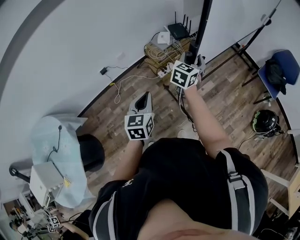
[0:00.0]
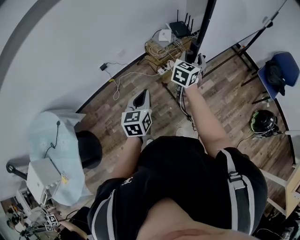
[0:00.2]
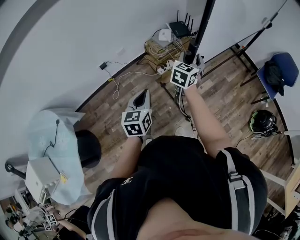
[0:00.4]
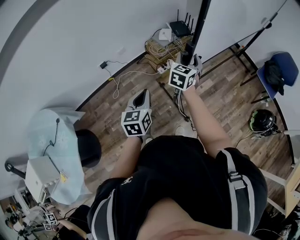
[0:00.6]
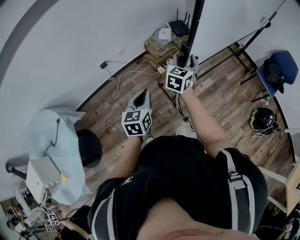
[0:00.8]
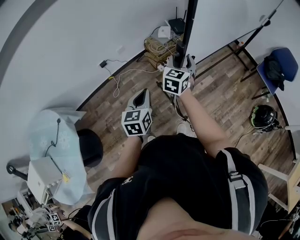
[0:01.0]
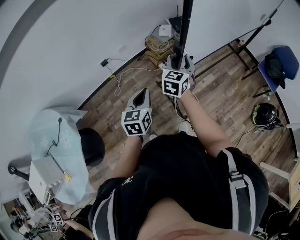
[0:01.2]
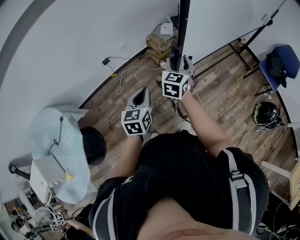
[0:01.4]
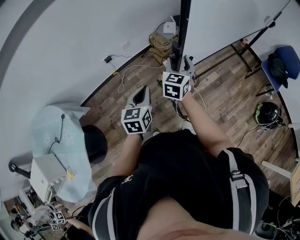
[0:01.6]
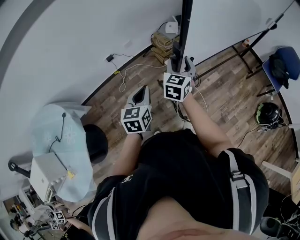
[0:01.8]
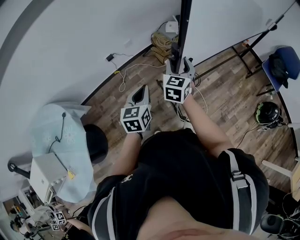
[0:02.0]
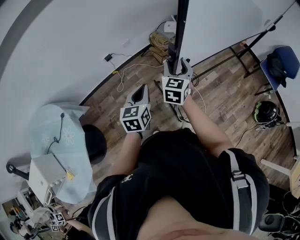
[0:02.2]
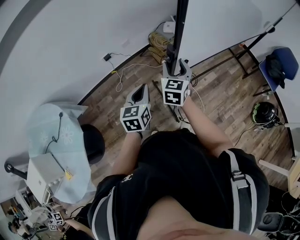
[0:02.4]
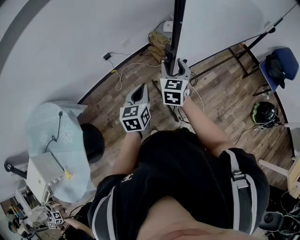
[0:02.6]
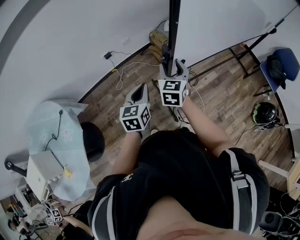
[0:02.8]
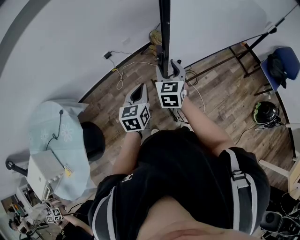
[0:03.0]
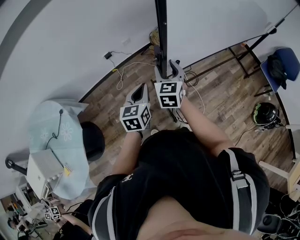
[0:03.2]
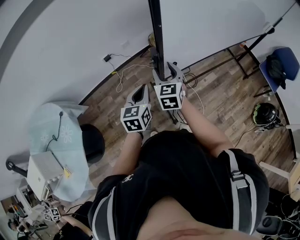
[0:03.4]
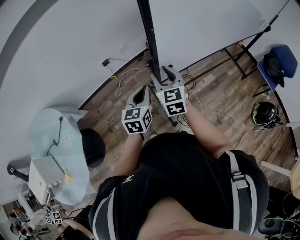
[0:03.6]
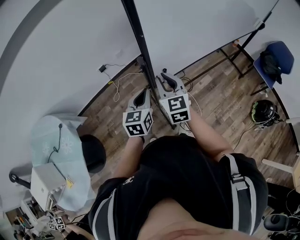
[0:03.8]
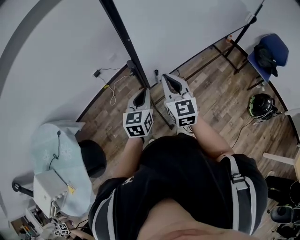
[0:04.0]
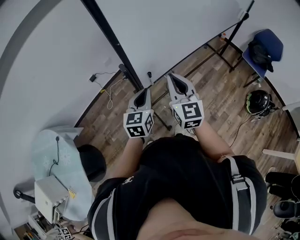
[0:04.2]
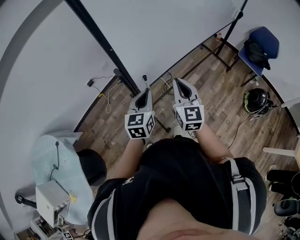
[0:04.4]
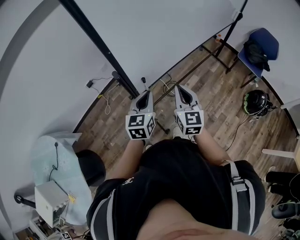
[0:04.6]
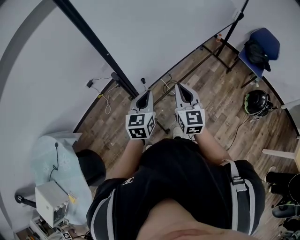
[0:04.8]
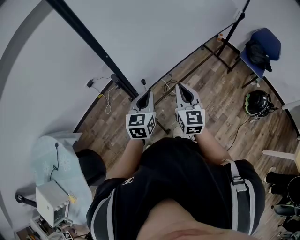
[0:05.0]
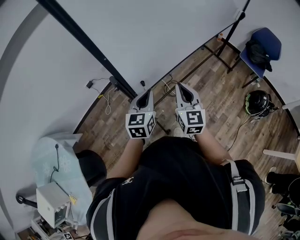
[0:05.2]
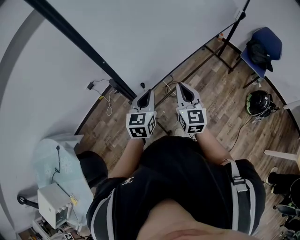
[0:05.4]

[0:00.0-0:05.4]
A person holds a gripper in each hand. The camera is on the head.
0:00.0 to 0:01.4: The left gripper heads backward and to the left, covering roughly 10 cm. Meanwhile the right gripper shifts some 15 cm backward and to the left.
0:01.4 to 0:02.8: The right gripper shifts roughly 10 cm to the left and backward.
0:02.8 to 0:04.0: The right gripper goes about 10 cm to the right, backward and upward, and closes; the left gripper heads to the right, covering about 10 cm.
0:04.0 to 0:05.4: The right gripper moves to the right, roughly 10 cm. Meanwhile the left gripper travels to the right by roughly 10 cm.

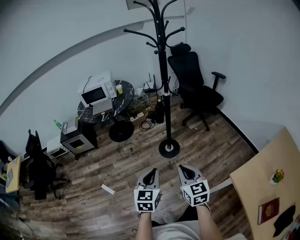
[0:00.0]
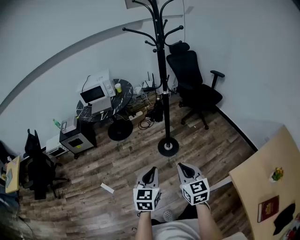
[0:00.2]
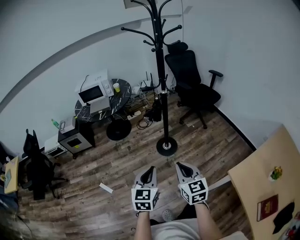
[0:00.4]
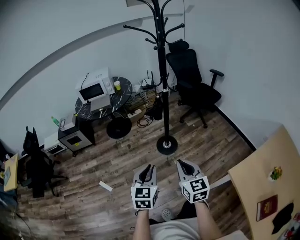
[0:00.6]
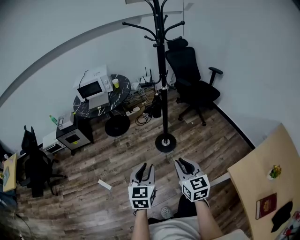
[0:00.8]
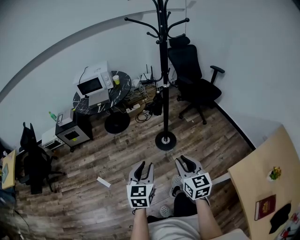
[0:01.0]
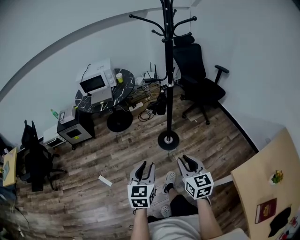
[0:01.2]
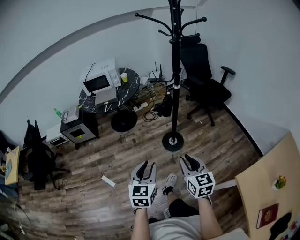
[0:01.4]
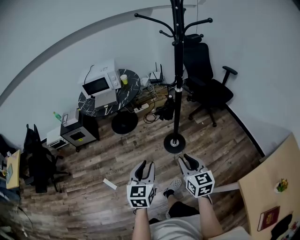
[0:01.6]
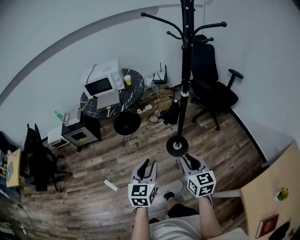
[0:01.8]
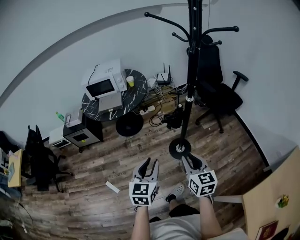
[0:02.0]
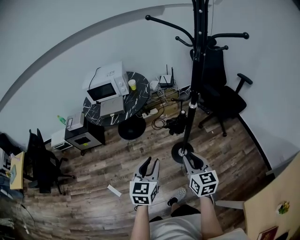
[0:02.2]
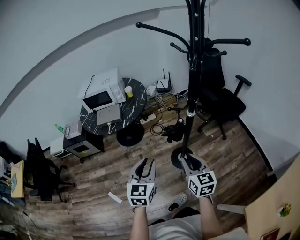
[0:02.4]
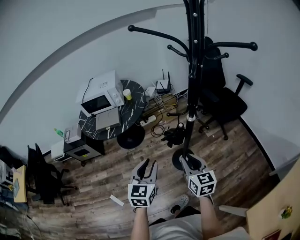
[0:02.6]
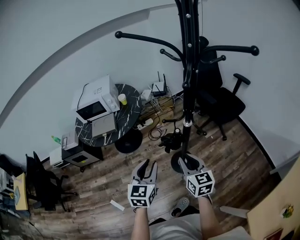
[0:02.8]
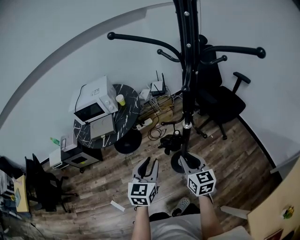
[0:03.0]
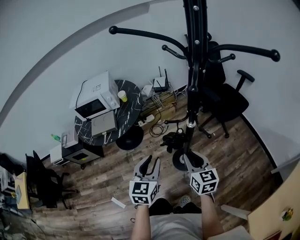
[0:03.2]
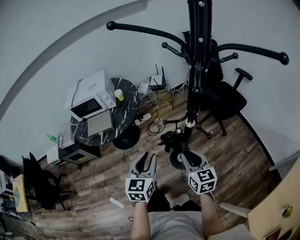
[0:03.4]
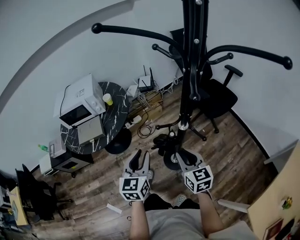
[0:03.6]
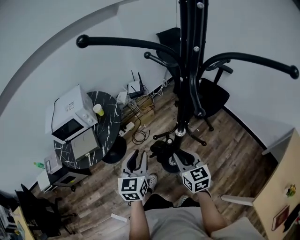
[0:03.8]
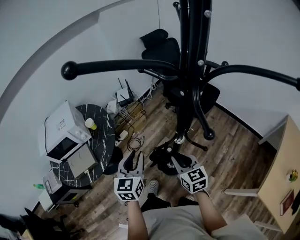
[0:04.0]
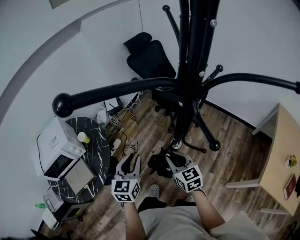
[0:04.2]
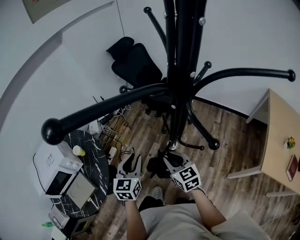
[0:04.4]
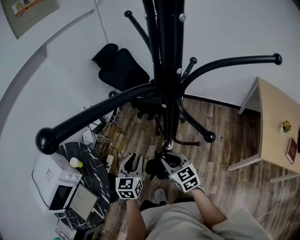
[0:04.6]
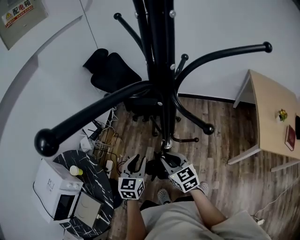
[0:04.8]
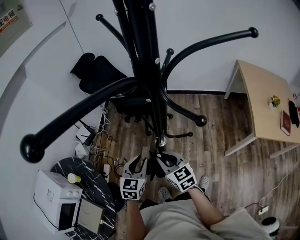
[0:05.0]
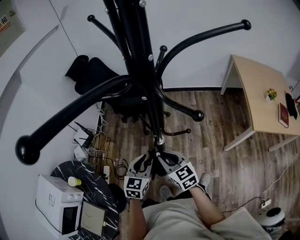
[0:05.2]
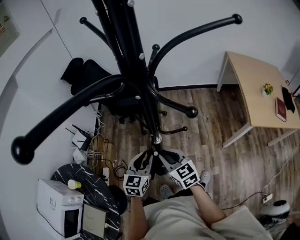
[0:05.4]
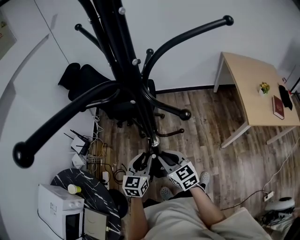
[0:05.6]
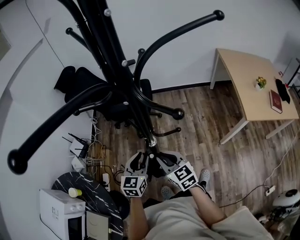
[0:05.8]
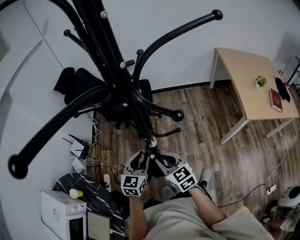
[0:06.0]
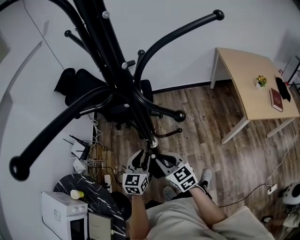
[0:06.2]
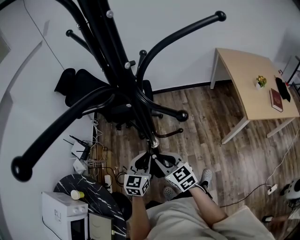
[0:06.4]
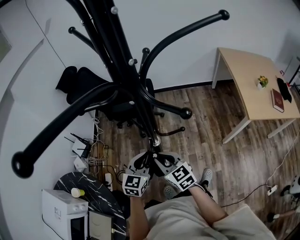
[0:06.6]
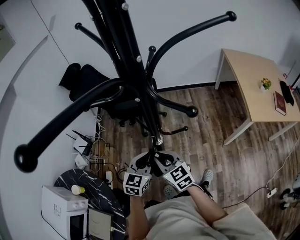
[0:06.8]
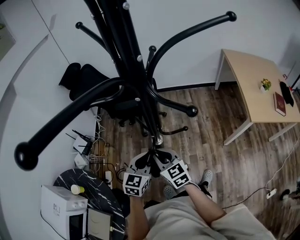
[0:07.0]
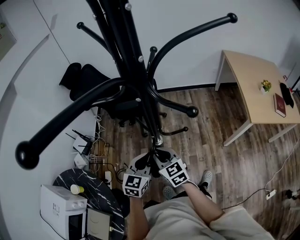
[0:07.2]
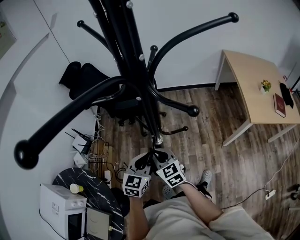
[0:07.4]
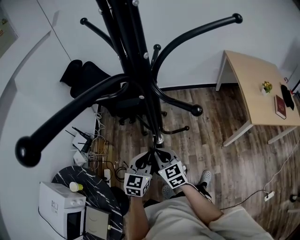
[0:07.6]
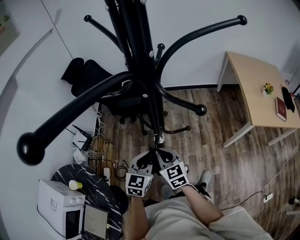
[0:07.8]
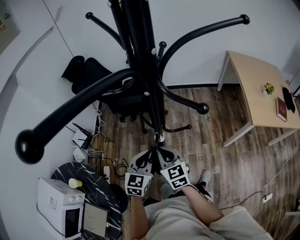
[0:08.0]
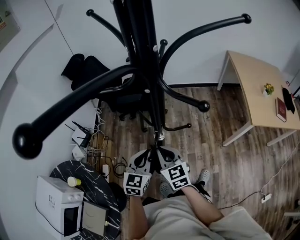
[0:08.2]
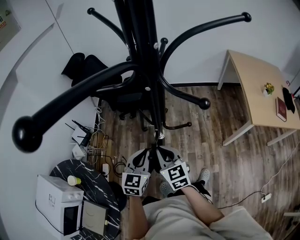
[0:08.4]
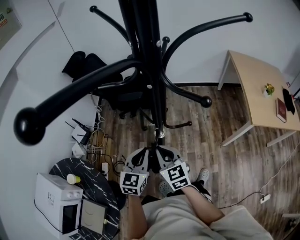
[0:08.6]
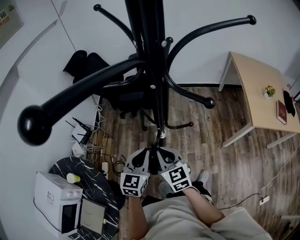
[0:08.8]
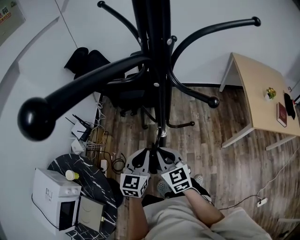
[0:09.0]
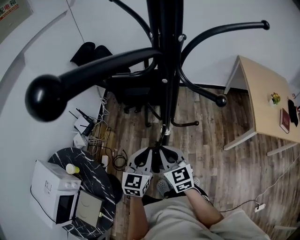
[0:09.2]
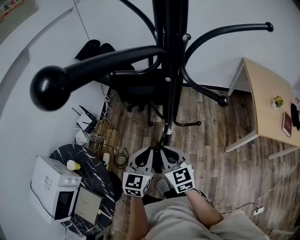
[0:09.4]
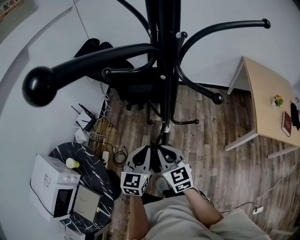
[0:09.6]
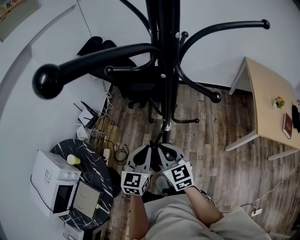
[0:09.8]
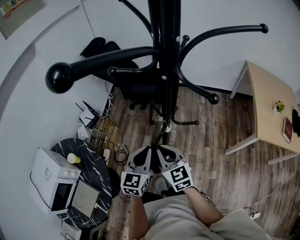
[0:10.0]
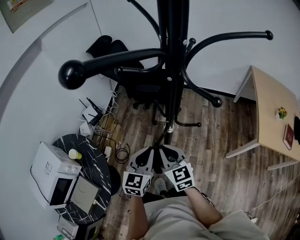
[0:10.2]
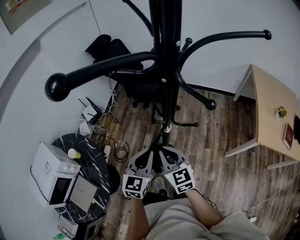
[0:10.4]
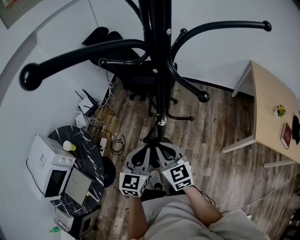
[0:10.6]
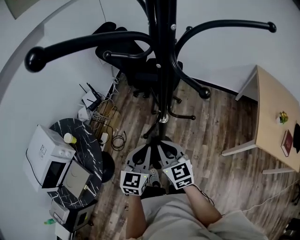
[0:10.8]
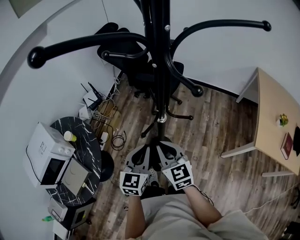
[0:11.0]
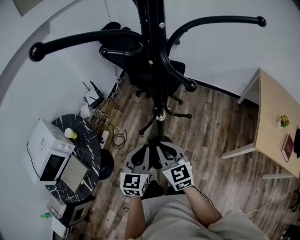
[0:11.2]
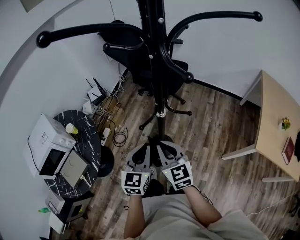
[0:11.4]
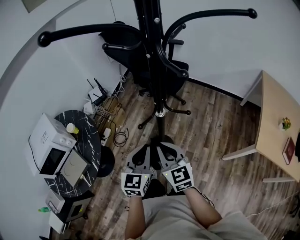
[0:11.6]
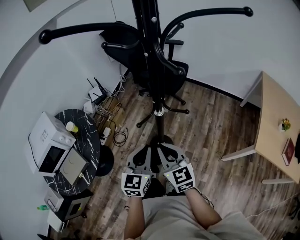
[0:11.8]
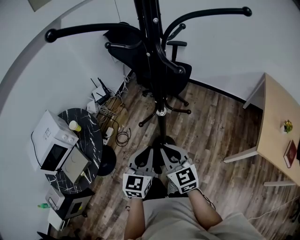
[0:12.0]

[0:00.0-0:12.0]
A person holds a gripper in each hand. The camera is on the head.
0:00.0 to 0:01.6: The left gripper moves forward and to the left, approximately 15 cm, and opens; the right gripper moves forward, roughly 10 cm, and opens its fingers.
0:01.6 to 0:03.0: Both grippers move forward, about 30 cm.
0:03.0 to 0:04.4: The right gripper moves some 20 cm, and changes its angle by roughly 20 degrees. The left gripper ends up roughly 25 cm from where it was, and rotates roughly 30 degrees.
0:04.4 to 0:06.0: The right gripper changes its angle by about 20 degrees. The left gripper ends up about 10 cm from where it was, and turns by roughly 40 degrees.
0:06.0 to 0:07.6: The left gripper closes up.
0:07.6 to 0:09.0: The right gripper changes place by approximately 5 cm.
0:09.0 to 0:10.4: The left gripper moves roughly 5 cm.
0:10.4 to 0:12.0: The left gripper goes about 10 cm backward, while the right gripper travels backward and to the right by roughly 10 cm.

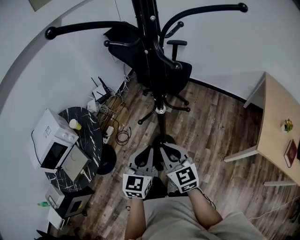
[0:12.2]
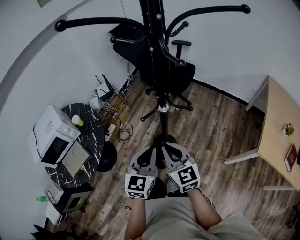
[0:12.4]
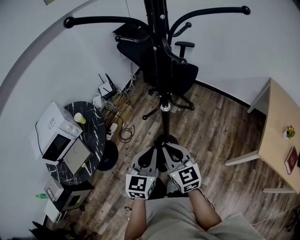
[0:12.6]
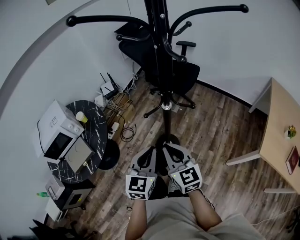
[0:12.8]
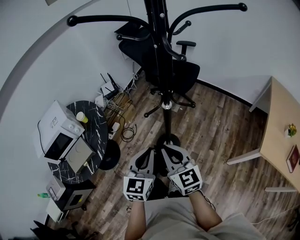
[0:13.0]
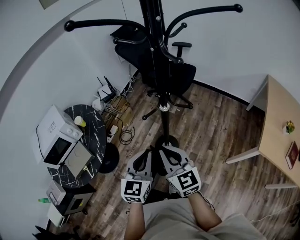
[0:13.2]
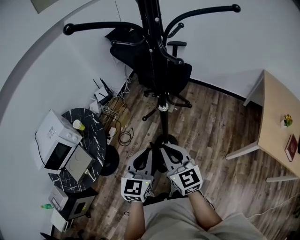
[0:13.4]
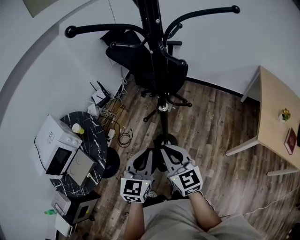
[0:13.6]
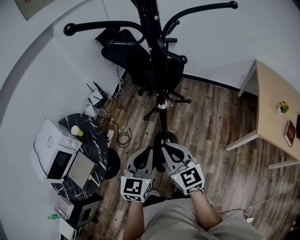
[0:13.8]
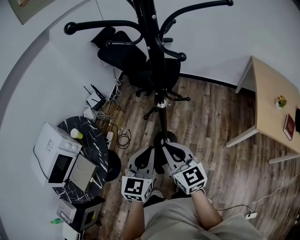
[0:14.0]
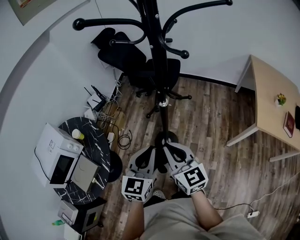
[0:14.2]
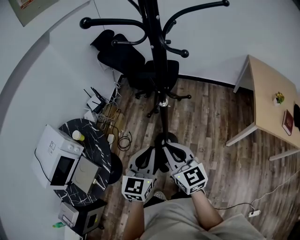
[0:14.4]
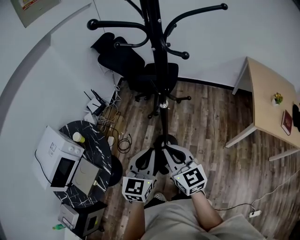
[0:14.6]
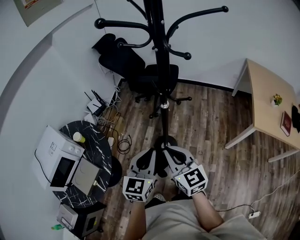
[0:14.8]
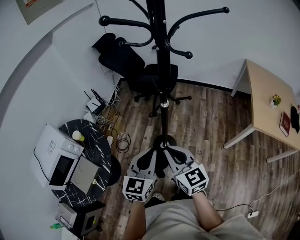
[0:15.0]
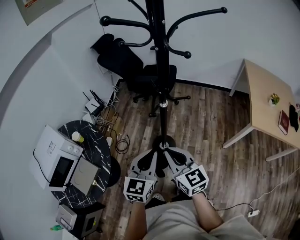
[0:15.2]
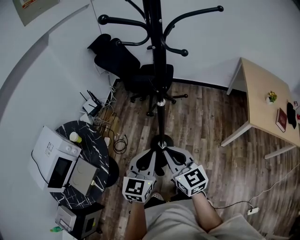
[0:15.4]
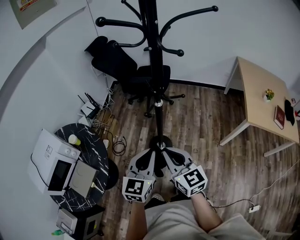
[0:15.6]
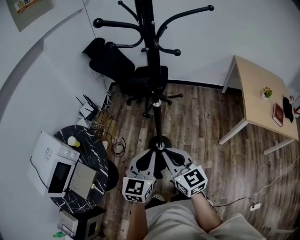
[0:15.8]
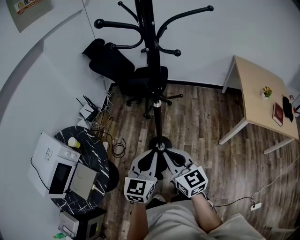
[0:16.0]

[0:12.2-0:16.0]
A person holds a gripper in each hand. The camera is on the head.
0:12.2 to 0:13.4: The right gripper moves approximately 5 cm.
0:13.4 to 0:14.8: The left gripper moves approximately 5 cm; the right gripper ends up approximately 5 cm from where it was.
0:14.8 to 0:16.0: The grippers stay close to where they were, moving slightly.

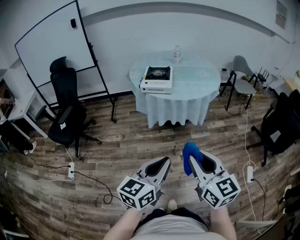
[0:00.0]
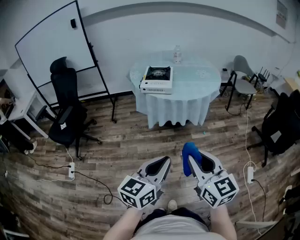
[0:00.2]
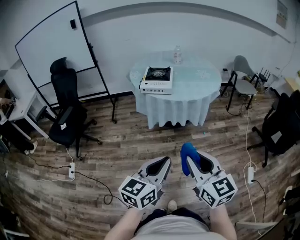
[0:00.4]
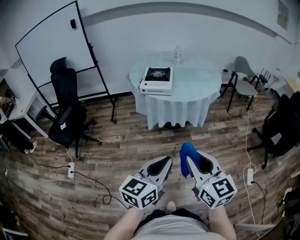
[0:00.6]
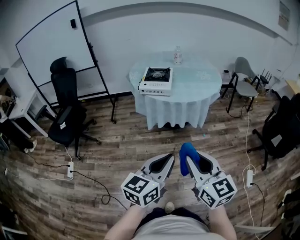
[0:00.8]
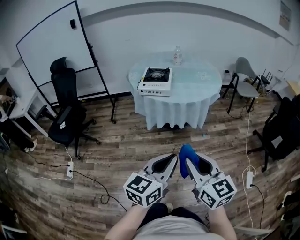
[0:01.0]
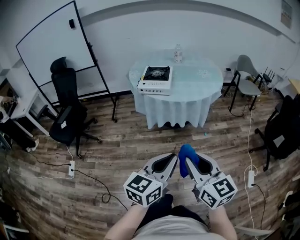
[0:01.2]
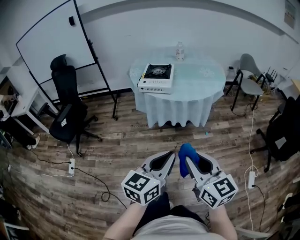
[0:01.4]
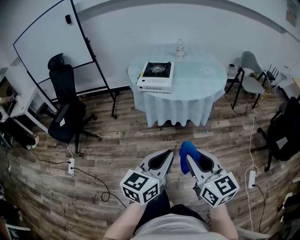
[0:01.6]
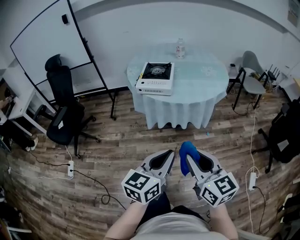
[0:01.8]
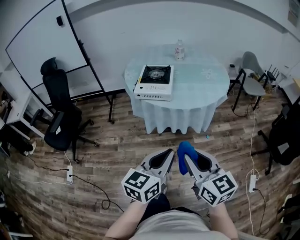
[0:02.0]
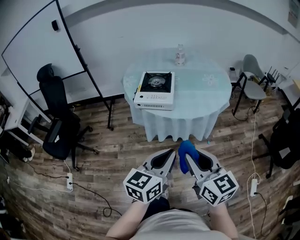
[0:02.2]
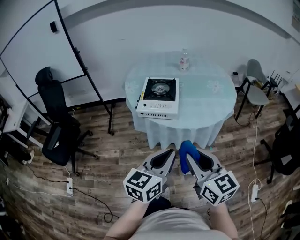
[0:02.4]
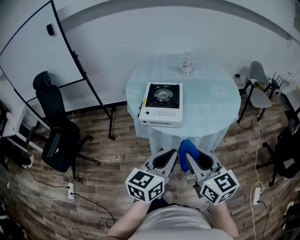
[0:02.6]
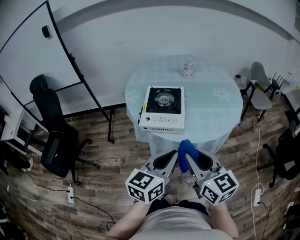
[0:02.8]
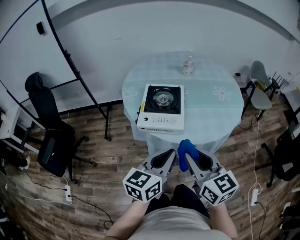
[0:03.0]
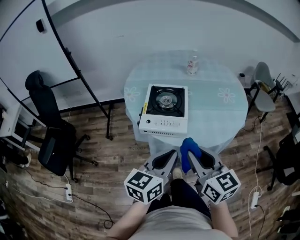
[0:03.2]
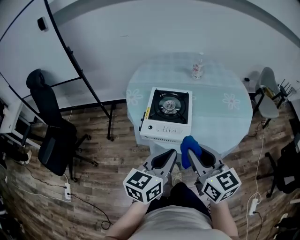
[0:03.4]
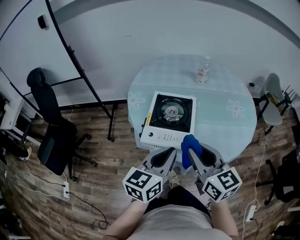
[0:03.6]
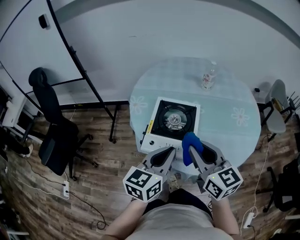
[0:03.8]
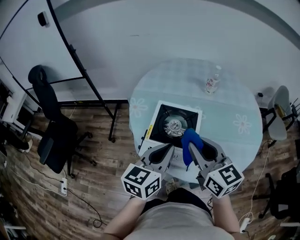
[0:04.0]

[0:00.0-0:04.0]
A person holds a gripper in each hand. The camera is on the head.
0:00.0 to 0:01.4: The left gripper is displaced forward and to the right by roughly 10 cm; the right gripper goes approximately 5 cm forward.
0:01.4 to 0:02.6: The grippers both shift forward by about 30 cm.
0:02.6 to 0:04.0: Both grippers move forward, some 30 cm.
